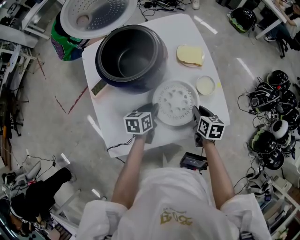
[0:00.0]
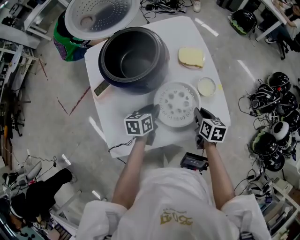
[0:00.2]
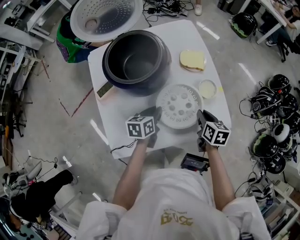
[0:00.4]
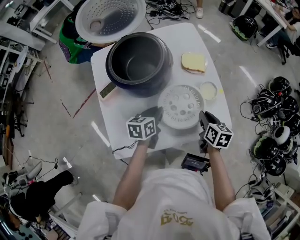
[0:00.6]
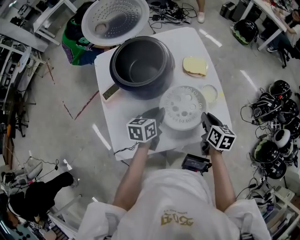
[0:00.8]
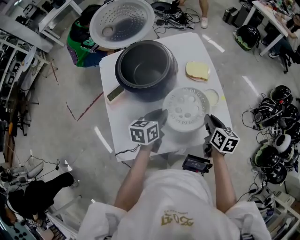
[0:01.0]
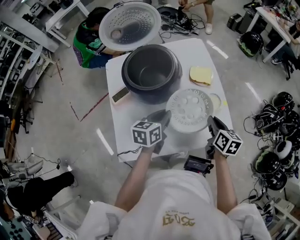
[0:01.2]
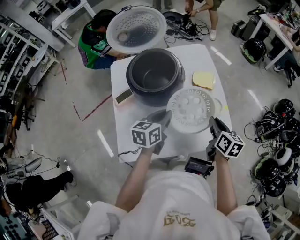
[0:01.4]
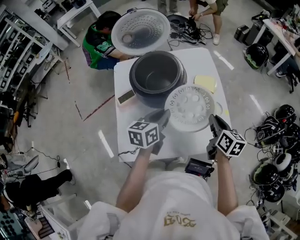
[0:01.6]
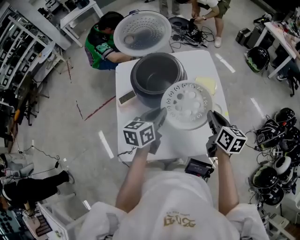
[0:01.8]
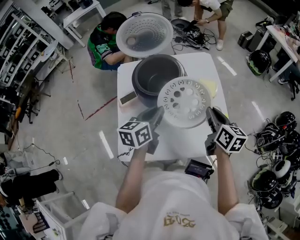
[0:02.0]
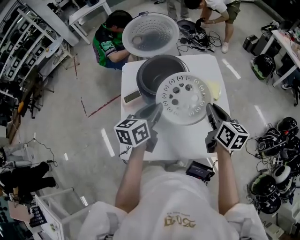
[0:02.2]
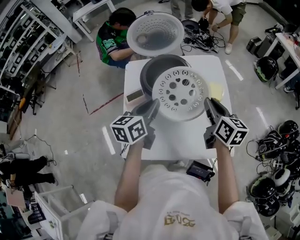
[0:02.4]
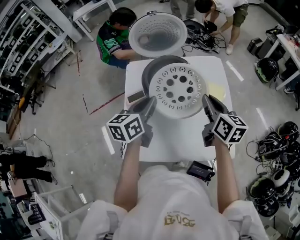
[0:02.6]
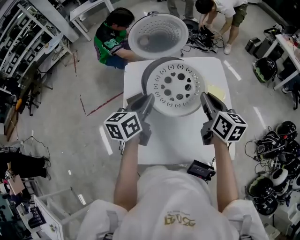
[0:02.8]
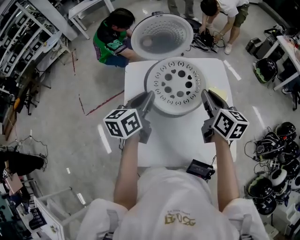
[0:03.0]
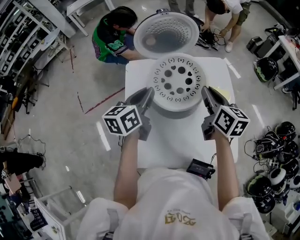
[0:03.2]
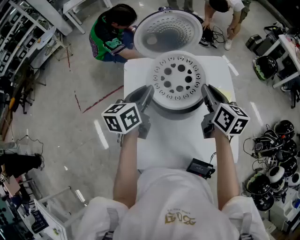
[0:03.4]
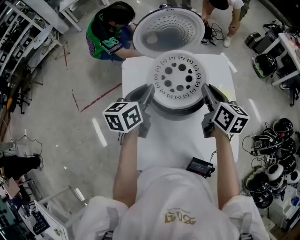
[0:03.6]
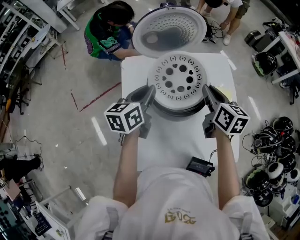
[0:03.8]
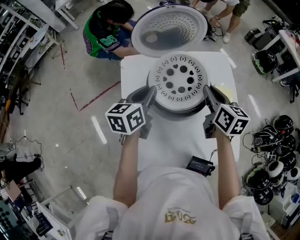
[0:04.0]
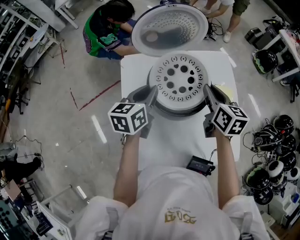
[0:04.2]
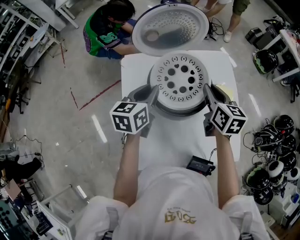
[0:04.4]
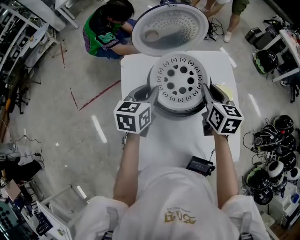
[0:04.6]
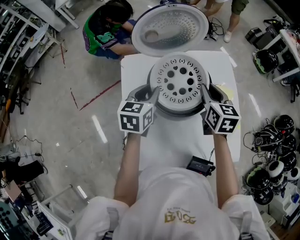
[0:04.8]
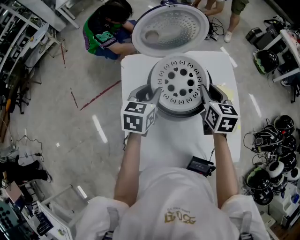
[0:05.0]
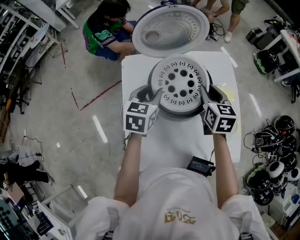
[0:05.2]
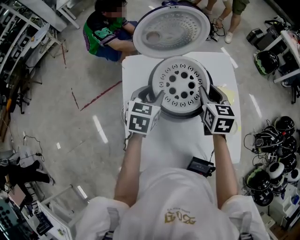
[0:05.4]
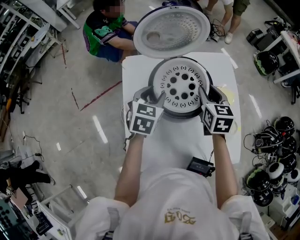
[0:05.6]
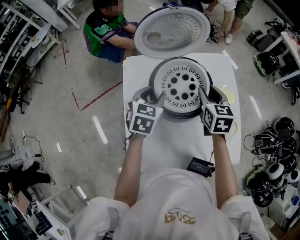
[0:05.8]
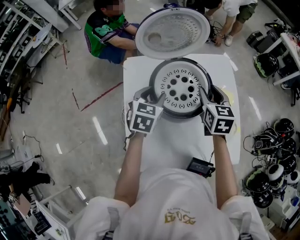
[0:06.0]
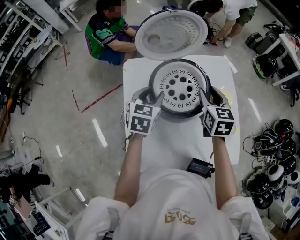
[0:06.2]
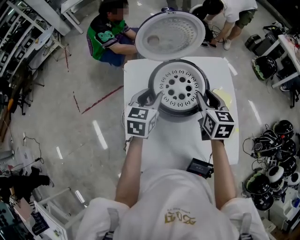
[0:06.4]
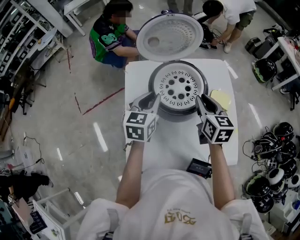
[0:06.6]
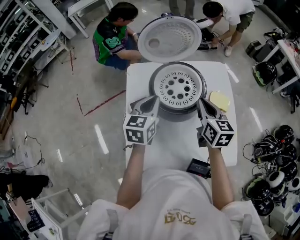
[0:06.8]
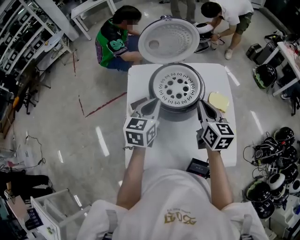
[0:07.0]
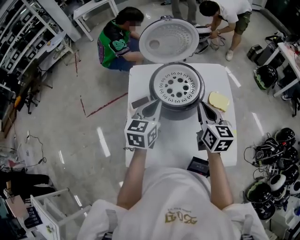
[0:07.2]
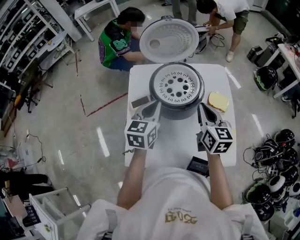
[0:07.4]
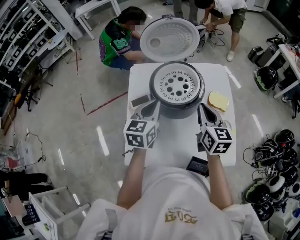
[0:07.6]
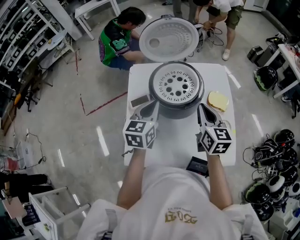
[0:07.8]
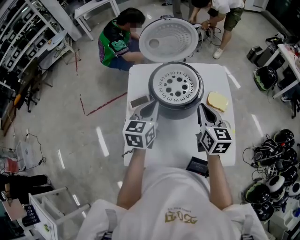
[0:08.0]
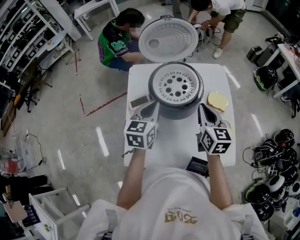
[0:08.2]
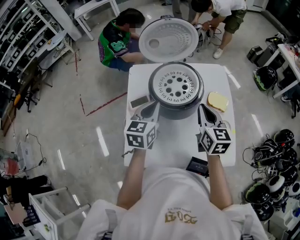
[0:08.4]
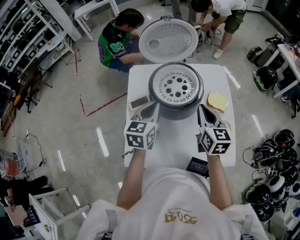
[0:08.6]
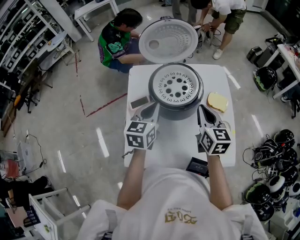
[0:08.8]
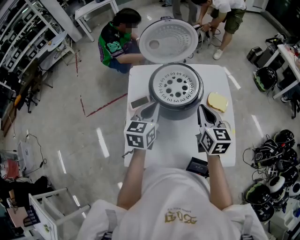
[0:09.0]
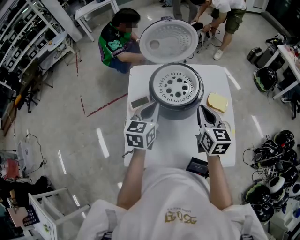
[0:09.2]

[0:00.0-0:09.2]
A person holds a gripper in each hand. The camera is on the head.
0:00.0 to 0:01.6: Both grippers travel together upward, about 20 cm. The right gripper rotates roughly 20 degrees.
0:01.6 to 0:03.0: The left gripper moves to the left, upward and forward, about 20 cm; the right gripper moves to the left, forward and upward, approximately 20 cm.
0:03.0 to 0:04.6: The two grippers go some 10 cm forward and downward.
0:04.6 to 0:06.2: The left gripper opens. Meanwhile the right gripper opens up.
0:06.2 to 0:07.6: The right gripper heads backward, covering roughly 10 cm, and closes. Meanwhile the left gripper travels backward and upward by some 10 cm, and closes up.
0:07.6 to 0:09.2: Neither gripper changes place.

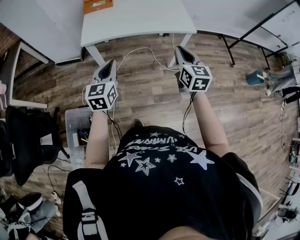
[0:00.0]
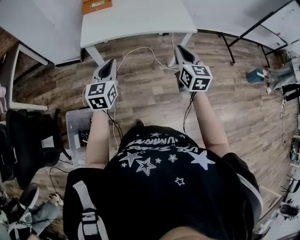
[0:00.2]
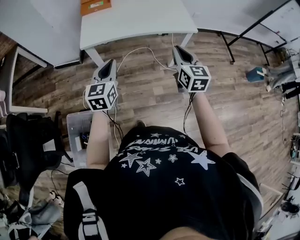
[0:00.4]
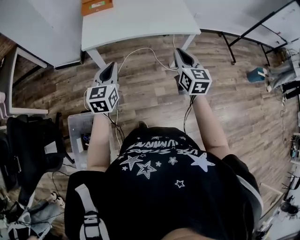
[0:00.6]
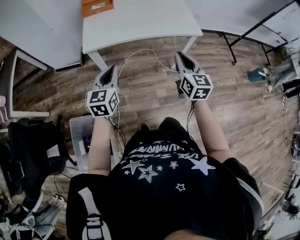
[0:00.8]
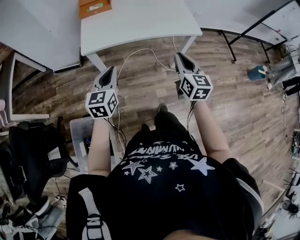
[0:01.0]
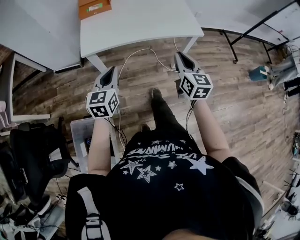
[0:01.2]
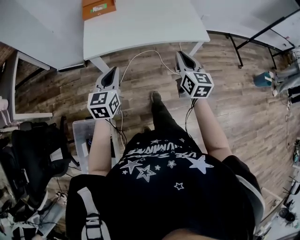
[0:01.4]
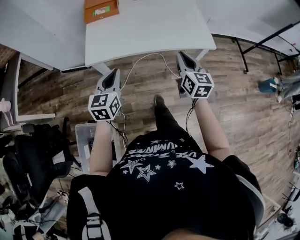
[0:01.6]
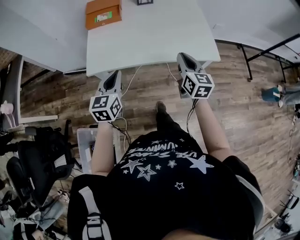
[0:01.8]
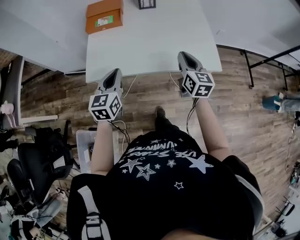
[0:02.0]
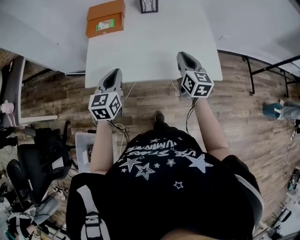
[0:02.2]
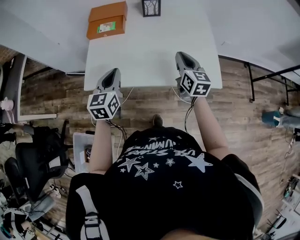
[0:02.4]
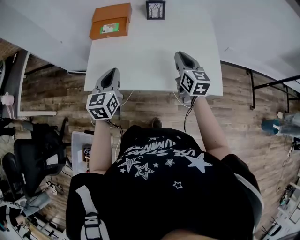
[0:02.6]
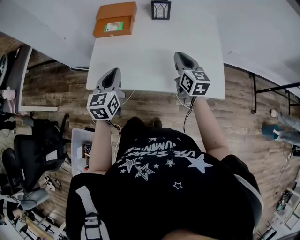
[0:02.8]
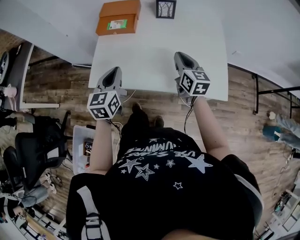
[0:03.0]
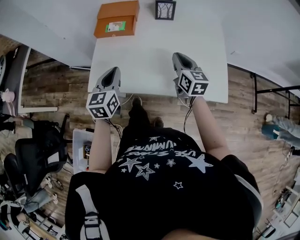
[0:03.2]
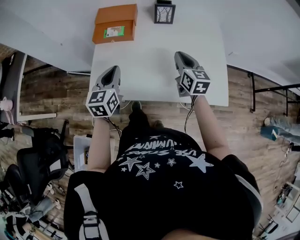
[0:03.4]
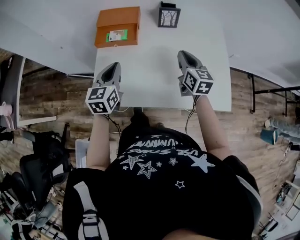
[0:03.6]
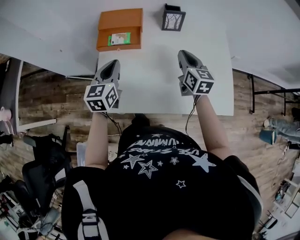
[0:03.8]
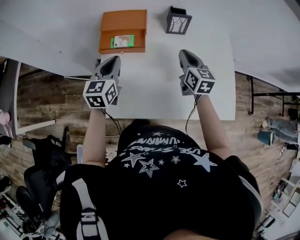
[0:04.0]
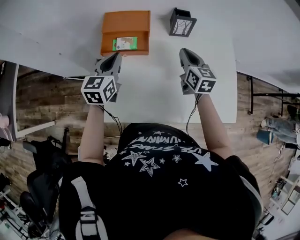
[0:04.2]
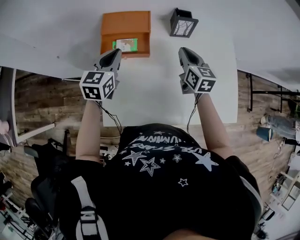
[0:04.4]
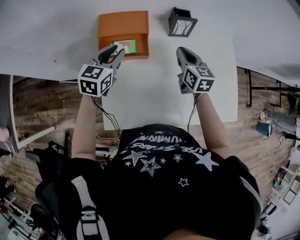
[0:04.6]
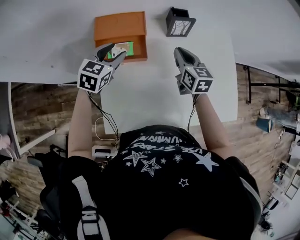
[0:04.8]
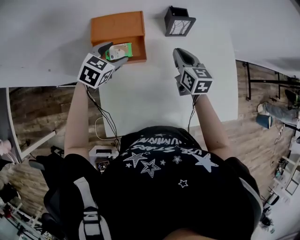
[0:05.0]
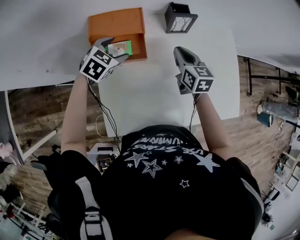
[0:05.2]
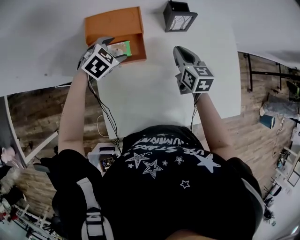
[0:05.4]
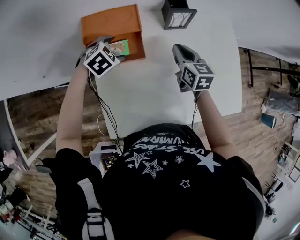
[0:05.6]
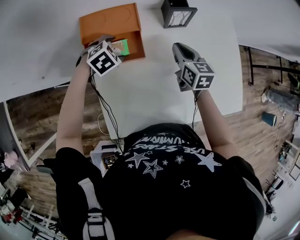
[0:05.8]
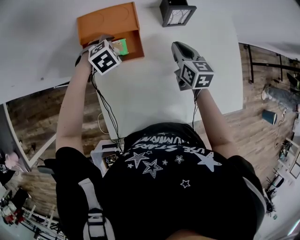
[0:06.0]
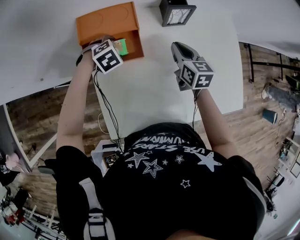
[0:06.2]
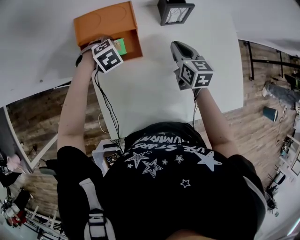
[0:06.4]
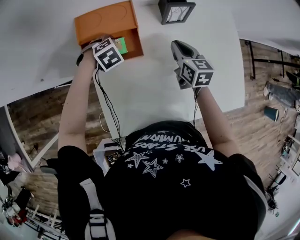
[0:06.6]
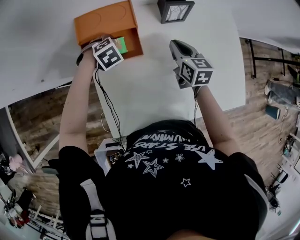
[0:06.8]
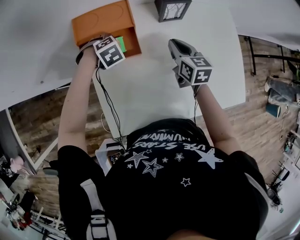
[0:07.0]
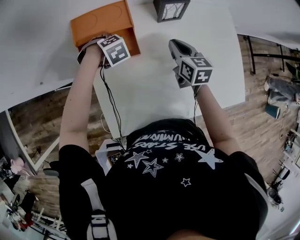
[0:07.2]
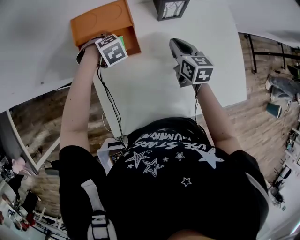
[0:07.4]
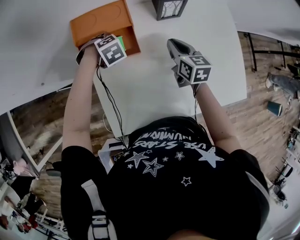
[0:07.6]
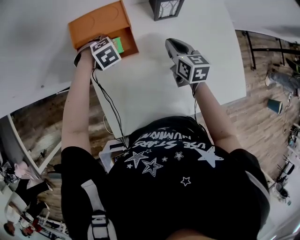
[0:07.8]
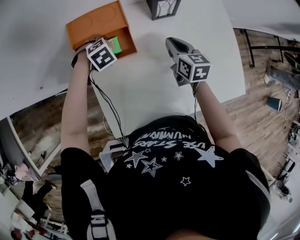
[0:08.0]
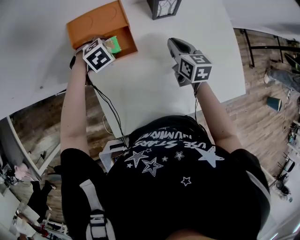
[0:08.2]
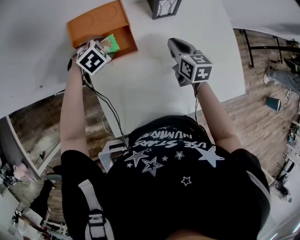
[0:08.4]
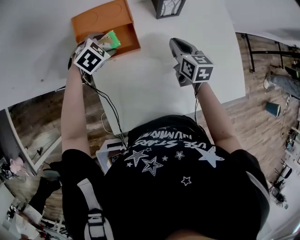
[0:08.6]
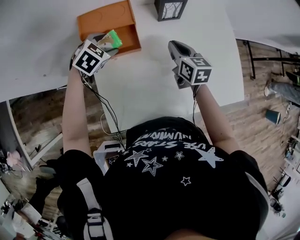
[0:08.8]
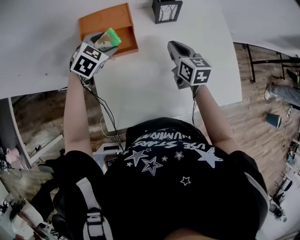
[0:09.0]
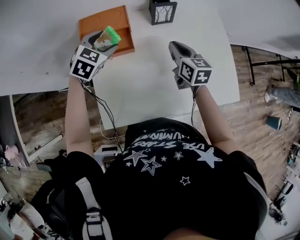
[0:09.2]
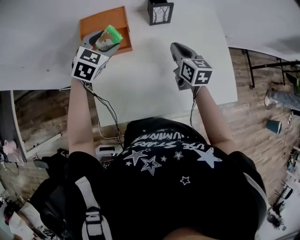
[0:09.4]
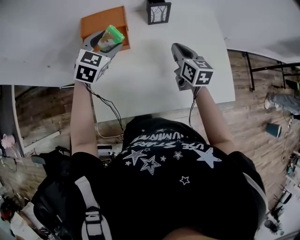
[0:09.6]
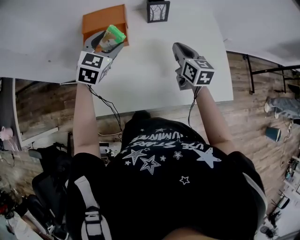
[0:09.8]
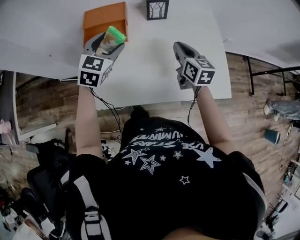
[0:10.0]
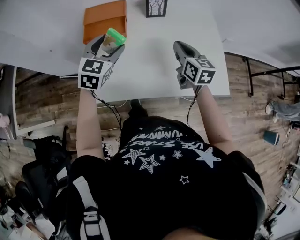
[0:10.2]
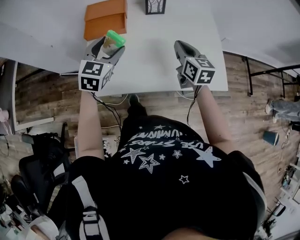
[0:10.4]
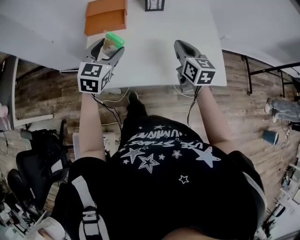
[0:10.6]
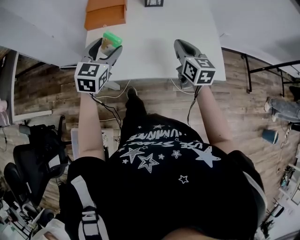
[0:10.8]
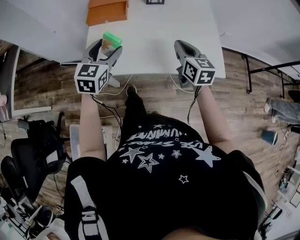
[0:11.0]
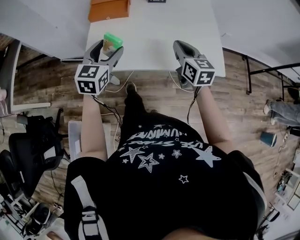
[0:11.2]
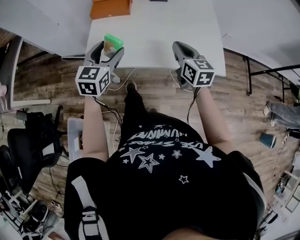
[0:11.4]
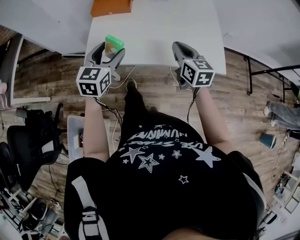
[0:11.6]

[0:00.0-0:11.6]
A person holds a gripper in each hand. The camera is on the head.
0:00.0 to 0:01.4: The right gripper goes some 15 cm forward and to the left, while the left gripper heads forward, covering some 15 cm.
0:01.4 to 0:02.8: The grippers both shift forward by approximately 30 cm.
0:02.8 to 0:04.4: Both grippers move forward and to the left, about 30 cm.
0:04.4 to 0:05.8: The left gripper shifts some 20 cm downward and forward, tips its fingers downward by about 40 degrees, and opens up; the right gripper shifts about 10 cm downward and forward.
0:05.8 to 0:07.2: The left gripper rotates roughly 20 degrees.
0:07.2 to 0:08.8: The left gripper heads upward, covering about 10 cm, and changes its angle by approximately 30 degrees.
0:08.8 to 0:10.2: The right gripper goes some 20 cm backward, to the right and upward. Meanwhile the left gripper shifts some 30 cm backward, upward and to the right, and tilts its fingers approximately 30 degrees upward.
0:10.2 to 0:11.6: Both grippers travel together backward, some 20 cm.

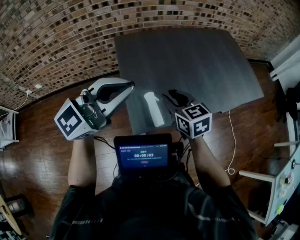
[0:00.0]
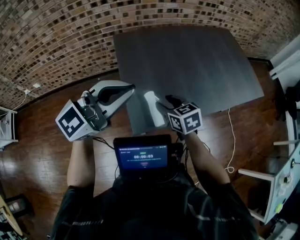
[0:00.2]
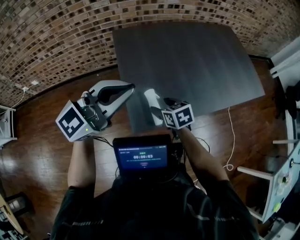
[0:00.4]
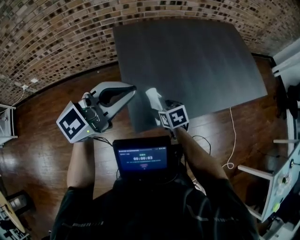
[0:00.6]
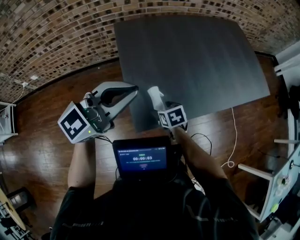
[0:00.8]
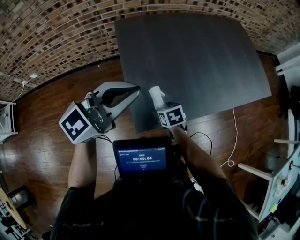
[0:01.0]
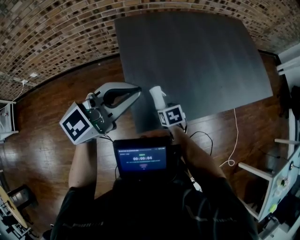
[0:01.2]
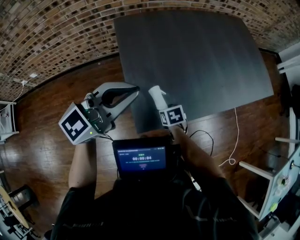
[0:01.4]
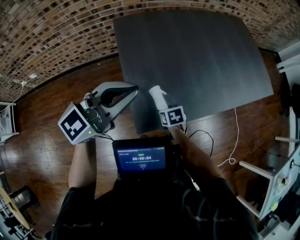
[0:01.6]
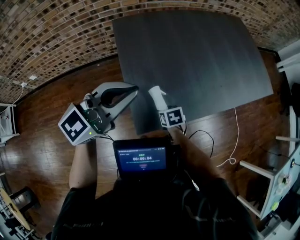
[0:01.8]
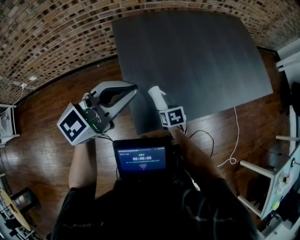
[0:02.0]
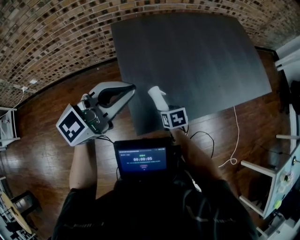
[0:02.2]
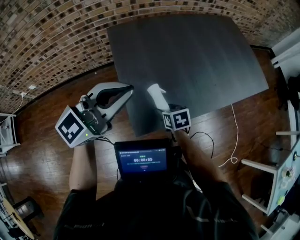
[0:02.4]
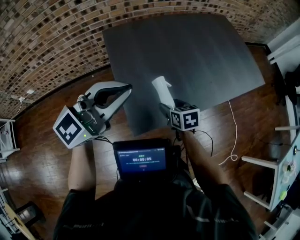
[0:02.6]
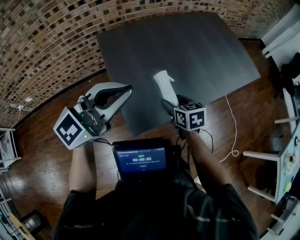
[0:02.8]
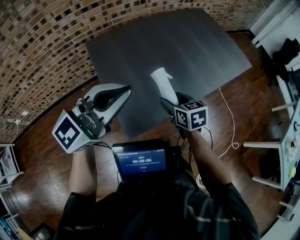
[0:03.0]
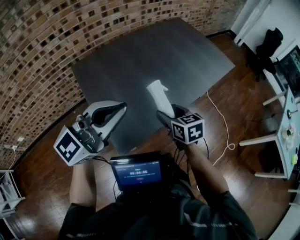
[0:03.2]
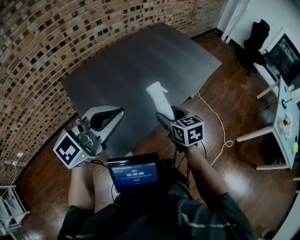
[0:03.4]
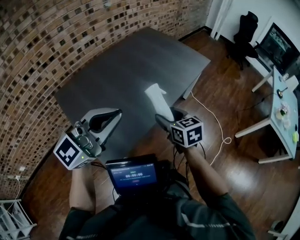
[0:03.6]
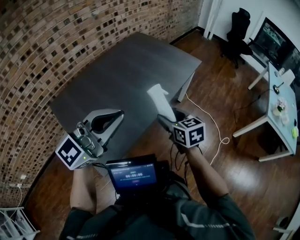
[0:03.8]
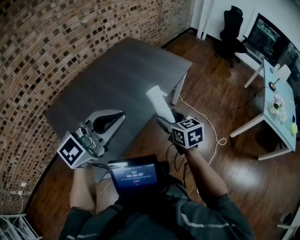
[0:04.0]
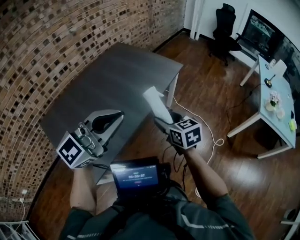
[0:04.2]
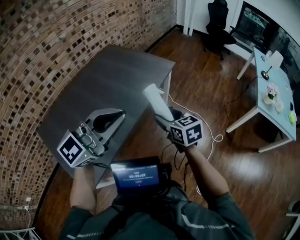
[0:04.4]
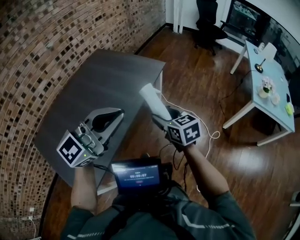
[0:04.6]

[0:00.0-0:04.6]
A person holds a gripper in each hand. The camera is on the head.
0:00.0 to 0:01.6: The left gripper heads downward and forward, covering some 10 cm, while the right gripper shifts approximately 30 cm downward, tilts its fingers some 40 degrees downward, and opens its fingers.
0:01.6 to 0:03.0: The left gripper travels upward by about 5 cm. Meanwhile the right gripper shifts approximately 20 cm upward, and turns by some 30 degrees.
0:03.0 to 0:04.6: Both grippers are carried roughly 50 cm. The left gripper changes its angle by about 30 degrees. Meanwhile the right gripper turns by about 30 degrees.
